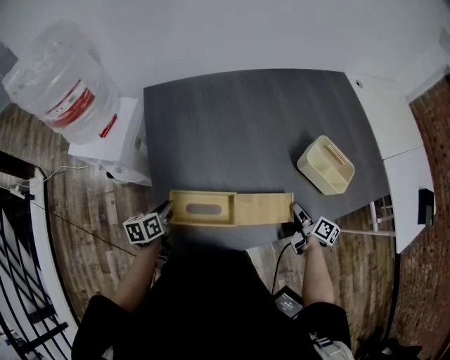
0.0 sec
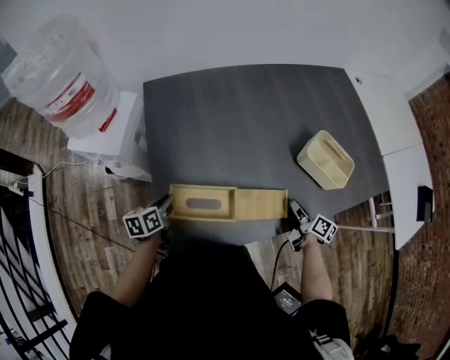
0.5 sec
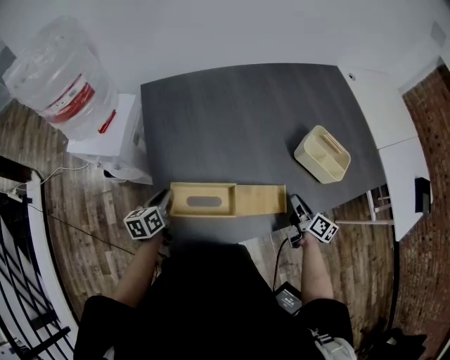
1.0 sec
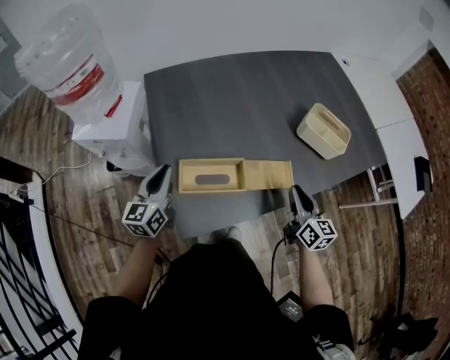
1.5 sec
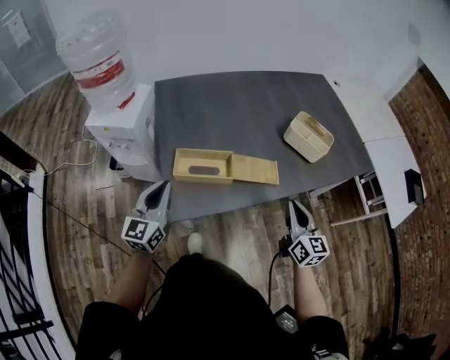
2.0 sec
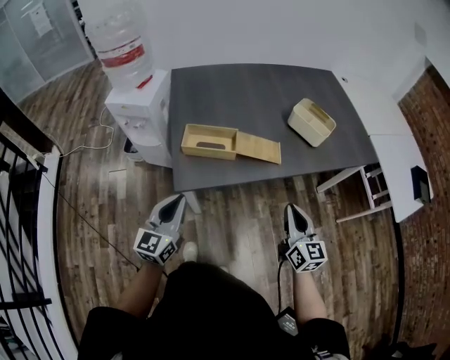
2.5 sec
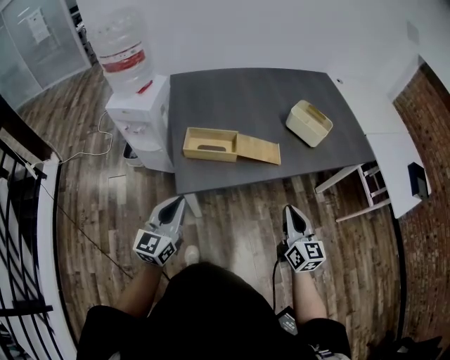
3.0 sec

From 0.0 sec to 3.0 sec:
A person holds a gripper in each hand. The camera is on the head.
From 0.0 sec to 1.5 sec: The right gripper is displaced upward, to the left and backward by approximately 20 cm, and rotates about 40 degrees. The left gripper travels upward by some 15 cm, and tilts its fingers some 30 degrees upward.
From 1.5 sec to 3.0 sec: The grippers both shift backward by about 25 cm.

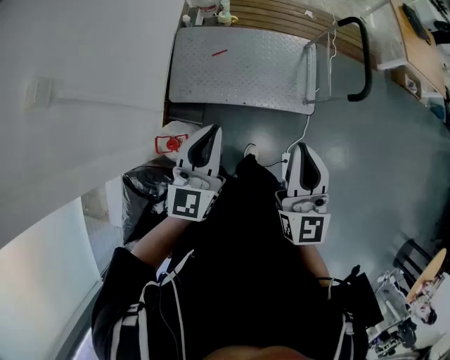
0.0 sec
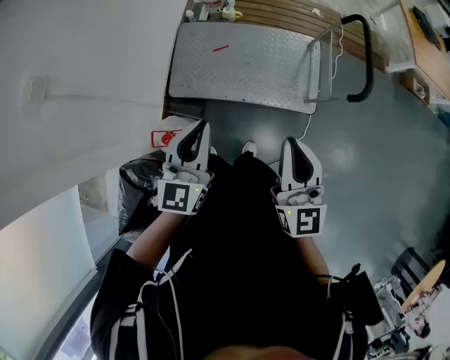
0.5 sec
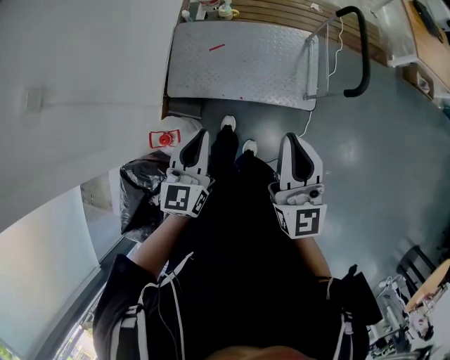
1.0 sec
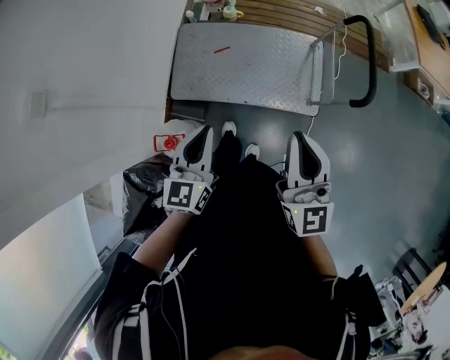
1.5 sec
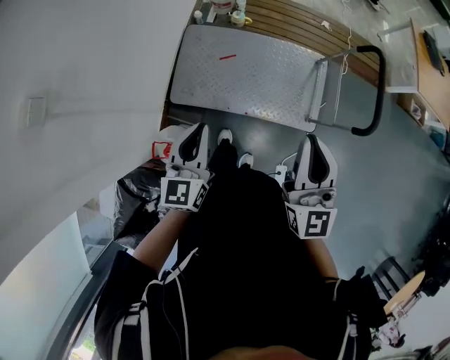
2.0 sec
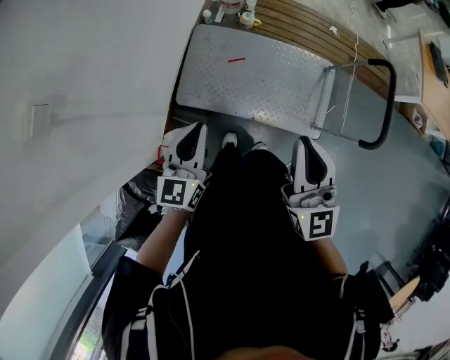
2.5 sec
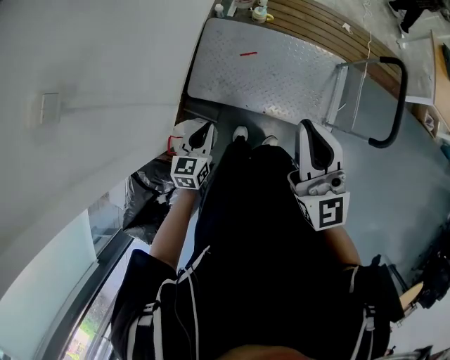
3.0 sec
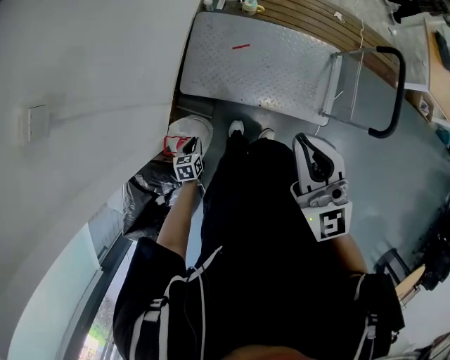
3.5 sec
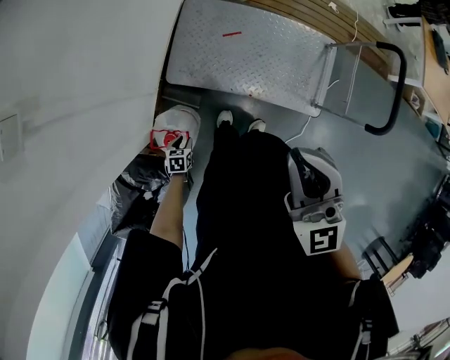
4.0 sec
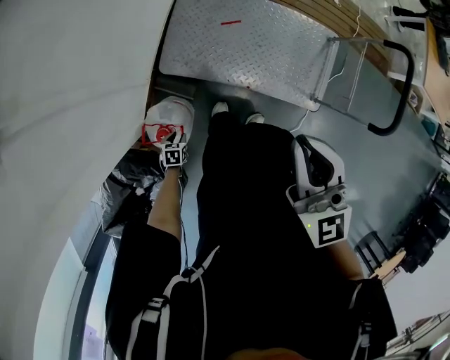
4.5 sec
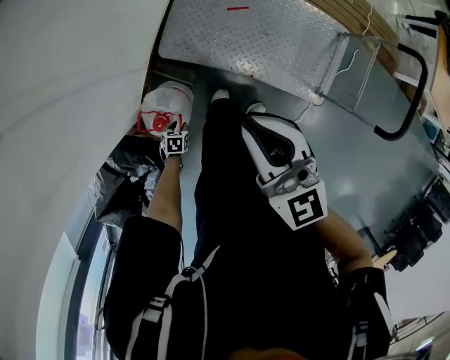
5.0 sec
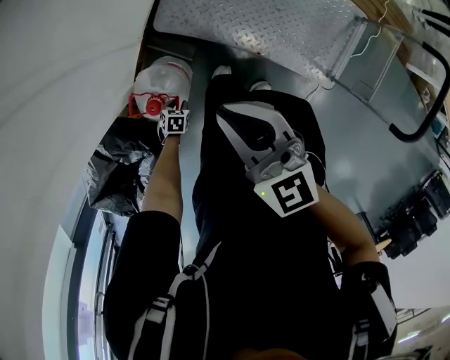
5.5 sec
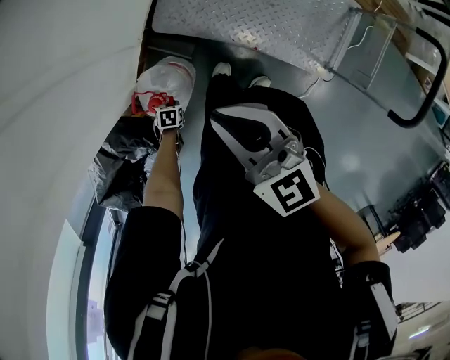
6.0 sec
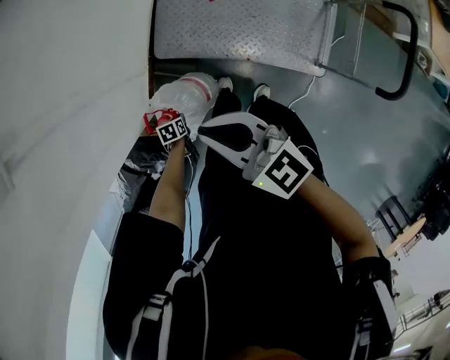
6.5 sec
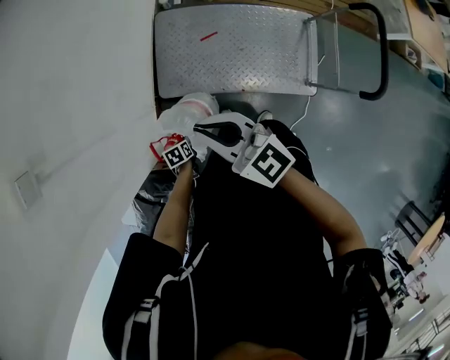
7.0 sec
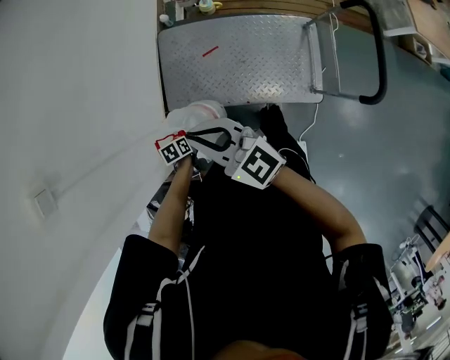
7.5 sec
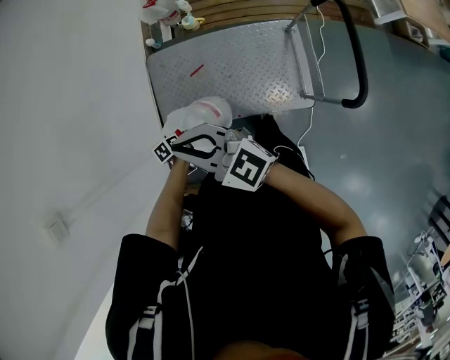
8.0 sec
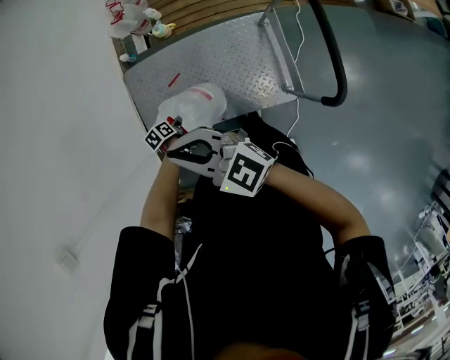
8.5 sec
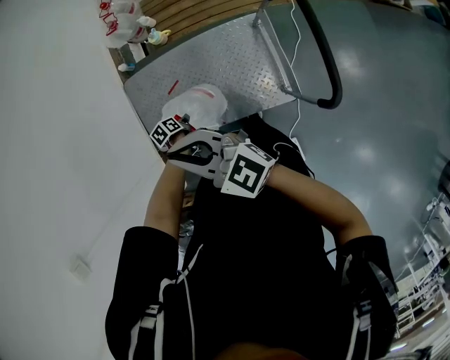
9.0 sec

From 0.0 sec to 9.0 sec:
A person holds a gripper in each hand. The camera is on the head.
From 0.0 sec to 2.0 sec: The right gripper is displaced forward by about 15 cm. The left gripper shifts roughly 15 cm forward, downward and to the left.
From 2.0 sec to 4.5 sec: The left gripper travels downward by approximately 50 cm, tilts its fingers about 60 degrees downward, and opens its fingers; the right gripper moves to the left and downward, some 15 cm, and changes its angle by some 20 degrees.
From 4.5 sec to 7.0 sec: The right gripper reaches some 20 cm downward, then returns, and changes its angle by approximately 30 degrees; the left gripper is displaced upward by roughly 10 cm, and closes its fingers.
From 7.0 sec to 9.0 sec: The two grippers go some 40 cm to the right and forward.

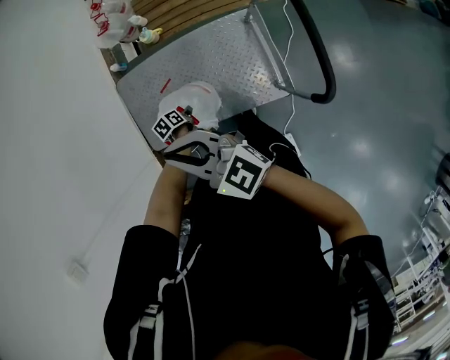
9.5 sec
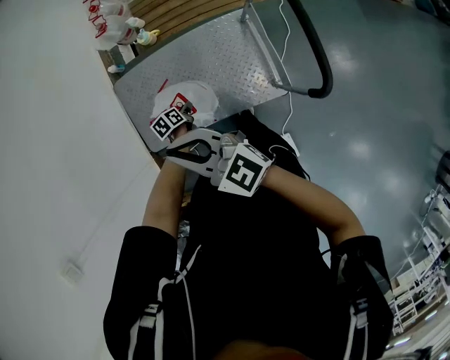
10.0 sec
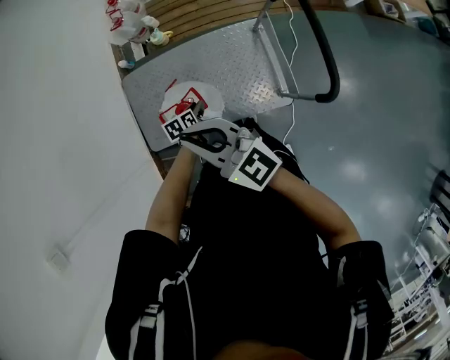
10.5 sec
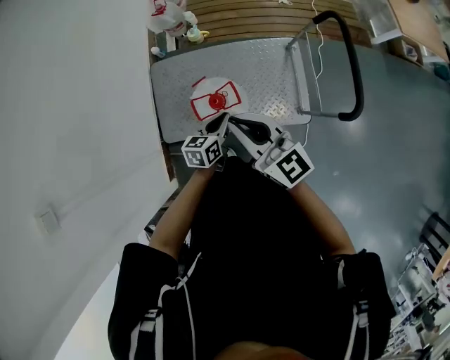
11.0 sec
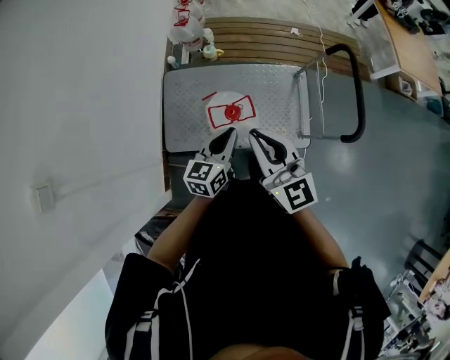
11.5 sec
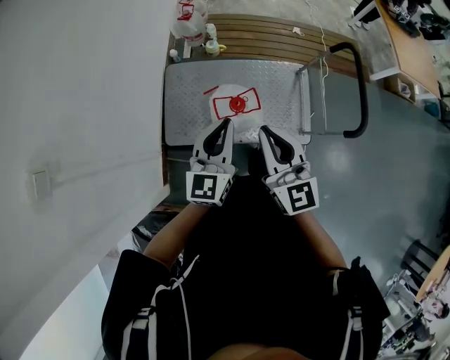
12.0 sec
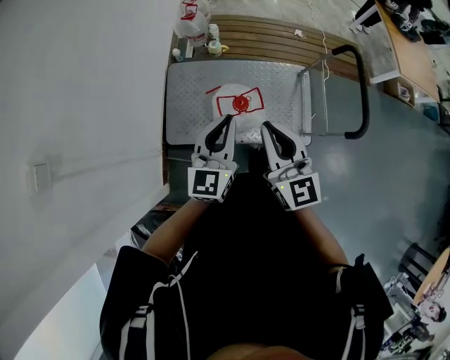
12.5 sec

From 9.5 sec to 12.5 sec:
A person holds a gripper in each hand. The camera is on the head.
From 9.5 sec to 11.0 sec: The left gripper travels upward and backward by roughly 25 cm, and tips its fingers upward by about 30 degrees, while the right gripper heads backward, covering approximately 5 cm.
From 11.0 sec to 12.5 sec: The left gripper moves upward and to the left, approximately 25 cm, and rotates approximately 40 degrees. The right gripper shifts approximately 10 cm to the left and backward.

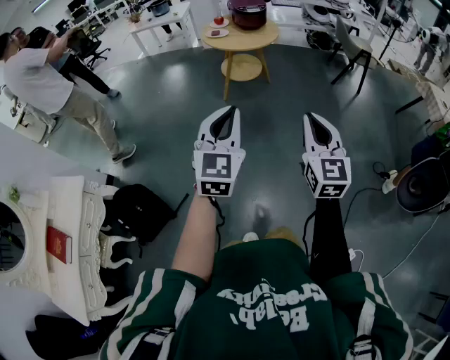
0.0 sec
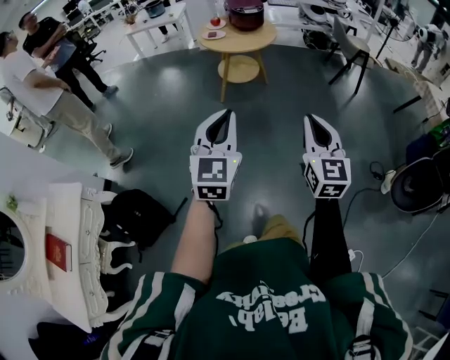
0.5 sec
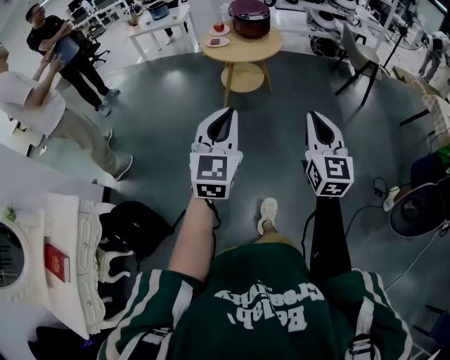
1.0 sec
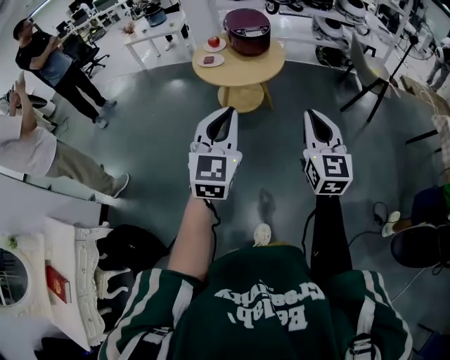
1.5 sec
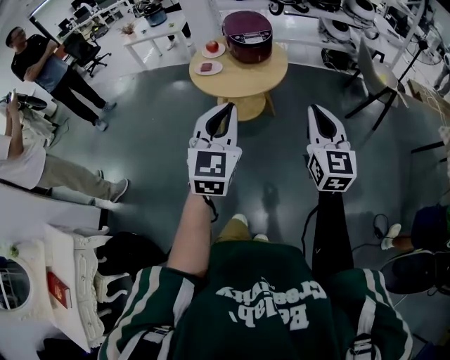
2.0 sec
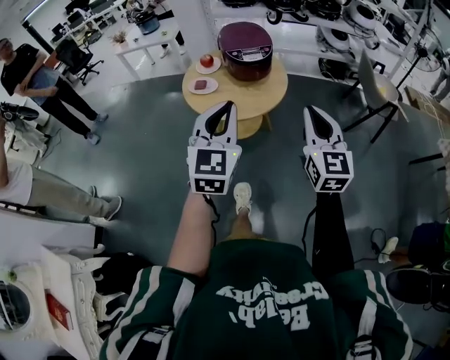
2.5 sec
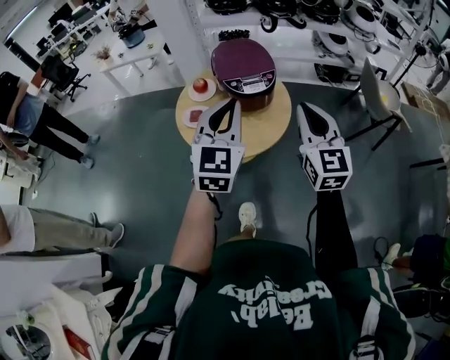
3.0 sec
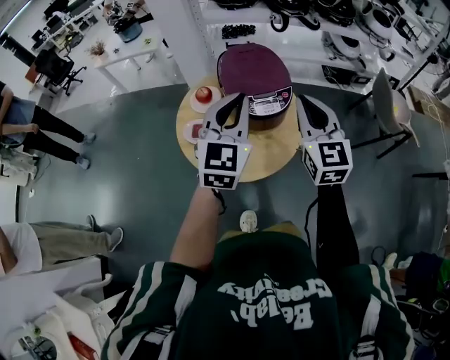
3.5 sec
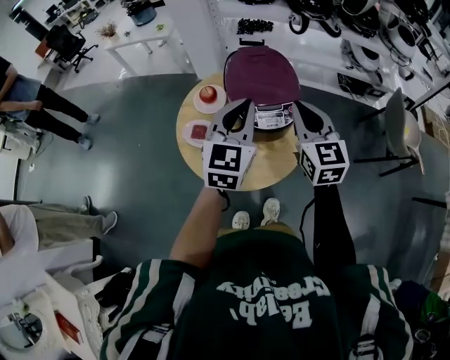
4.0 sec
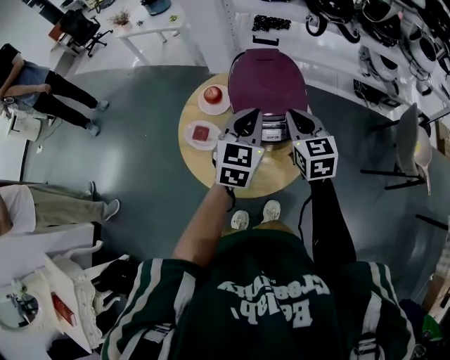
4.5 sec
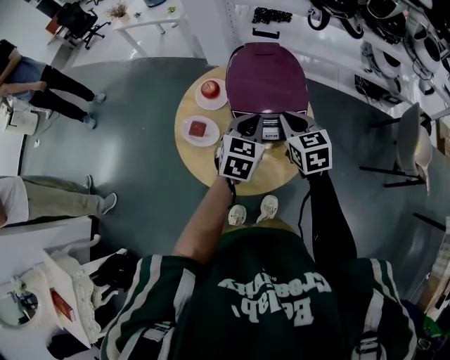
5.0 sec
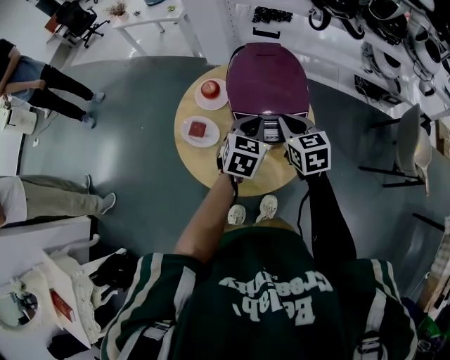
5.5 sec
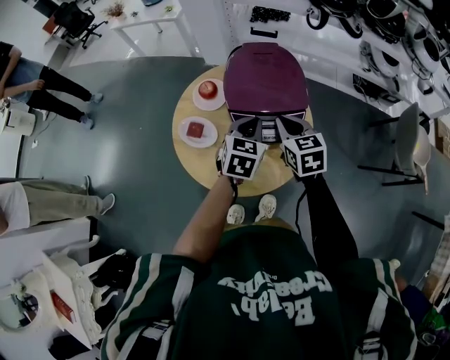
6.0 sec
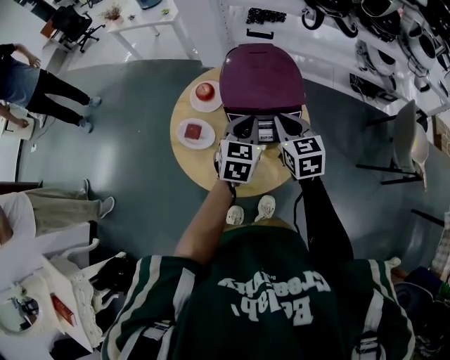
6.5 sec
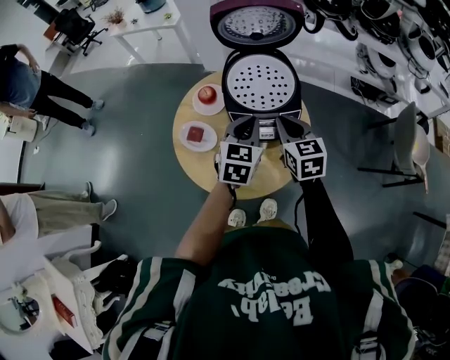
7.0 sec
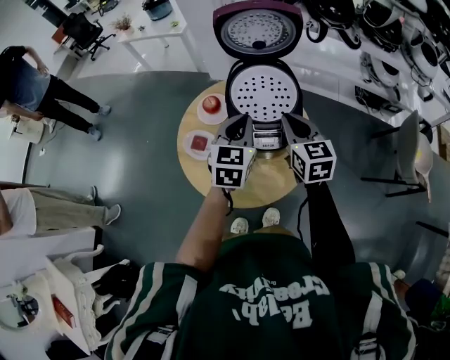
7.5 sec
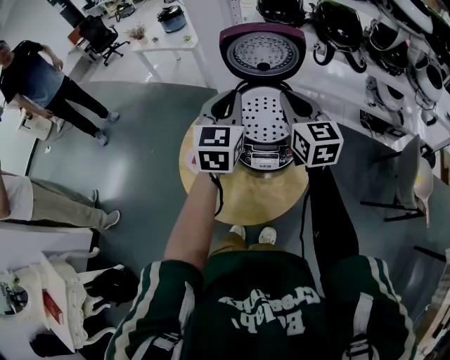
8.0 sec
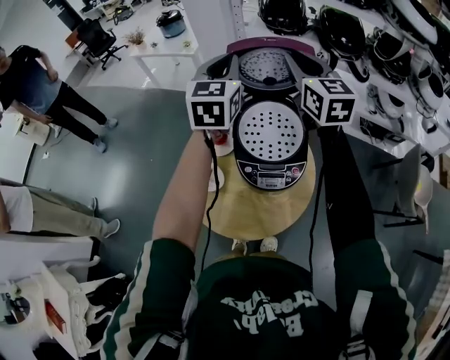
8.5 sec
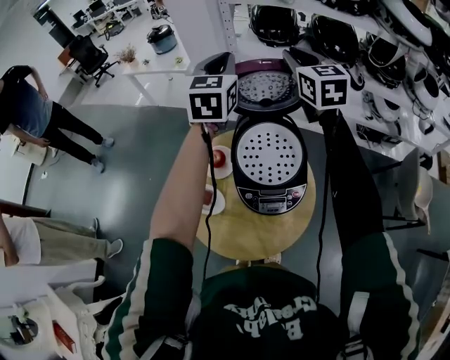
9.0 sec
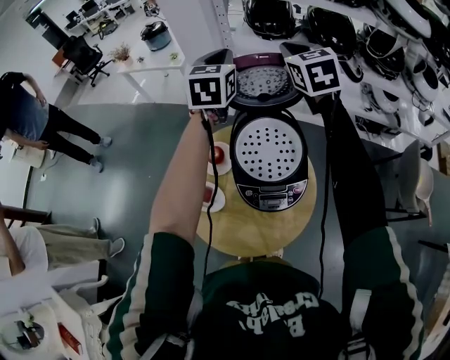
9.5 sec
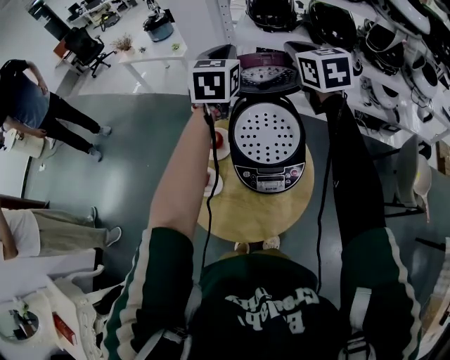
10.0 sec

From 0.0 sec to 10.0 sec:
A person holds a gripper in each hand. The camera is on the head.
From 0.0 sec to 2.0 sec: Both grippers are carried forward, approximately 50 cm.
From 2.0 sec to 4.0 sec: Both grippers are carried forward, some 60 cm.
From 4.0 sec to 6.0 sec: The left gripper is displaced downward by about 15 cm, and changes its angle by approximately 30 degrees; the right gripper shifts approximately 15 cm downward and forward, and changes its angle by some 30 degrees.
From 6.0 sec to 8.0 sec: Both grippers travel together upward and forward, some 20 cm. The left gripper rotates approximately 30 degrees. The right gripper changes its angle by about 30 degrees.
From 8.0 sec to 10.0 sec: The right gripper goes roughly 20 cm forward and upward, while the left gripper shifts roughly 20 cm forward.

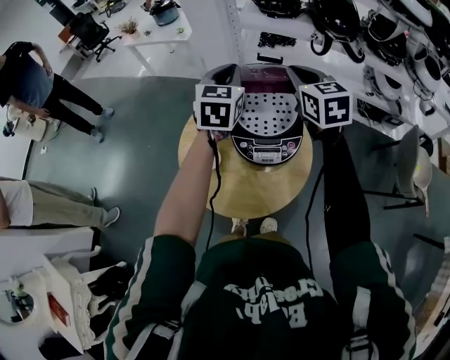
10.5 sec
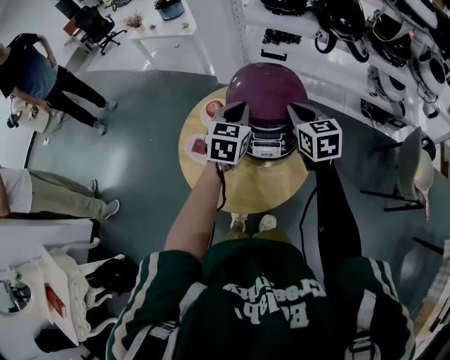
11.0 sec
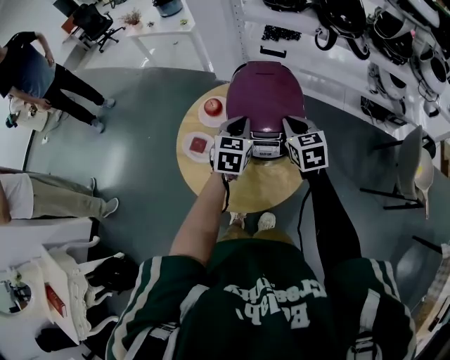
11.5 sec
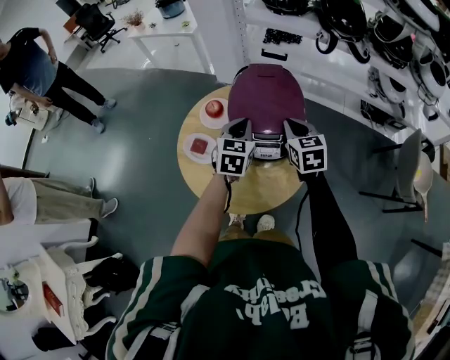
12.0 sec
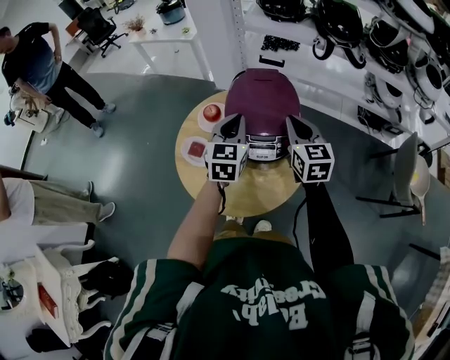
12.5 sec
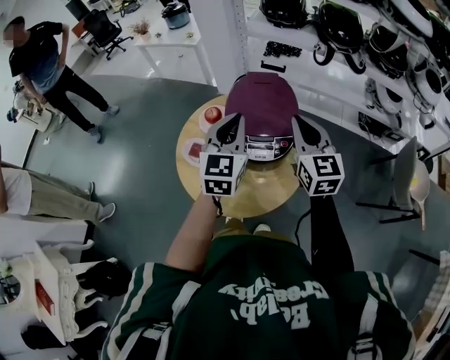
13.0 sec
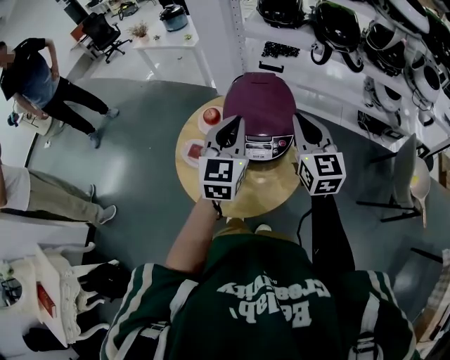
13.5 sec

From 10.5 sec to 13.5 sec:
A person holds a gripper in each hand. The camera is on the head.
From 10.5 sec to 12.0 sec: The grippers both shift downward and backward by approximately 20 cm.
From 12.0 sec to 13.5 sec: The left gripper travels upward and backward by approximately 15 cm, and swivels about 20 degrees, while the right gripper travels upward by approximately 15 cm, and turns by approximately 30 degrees.
